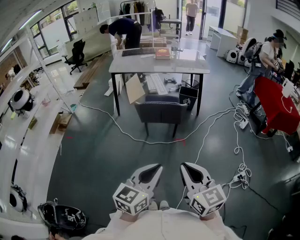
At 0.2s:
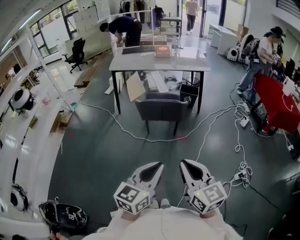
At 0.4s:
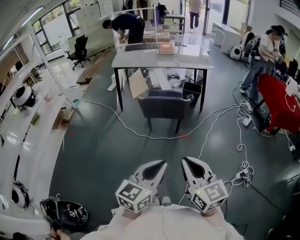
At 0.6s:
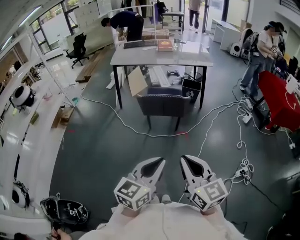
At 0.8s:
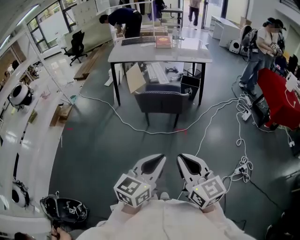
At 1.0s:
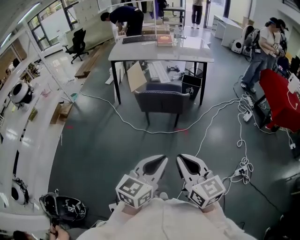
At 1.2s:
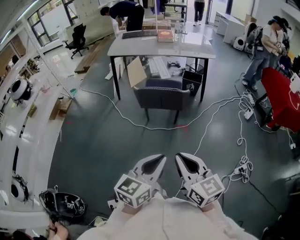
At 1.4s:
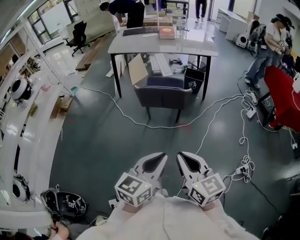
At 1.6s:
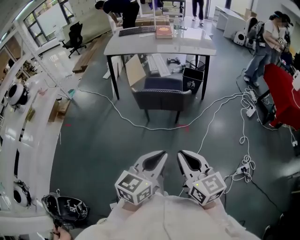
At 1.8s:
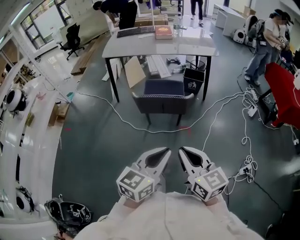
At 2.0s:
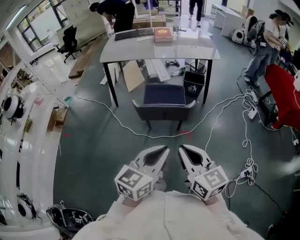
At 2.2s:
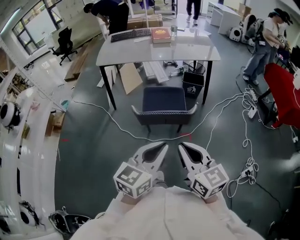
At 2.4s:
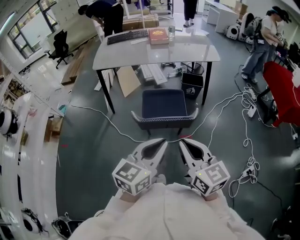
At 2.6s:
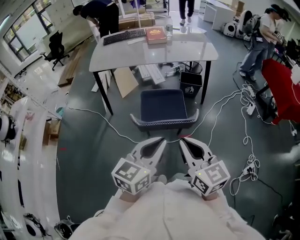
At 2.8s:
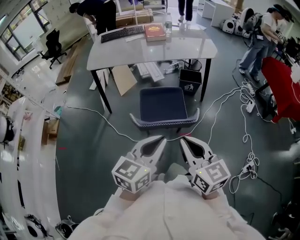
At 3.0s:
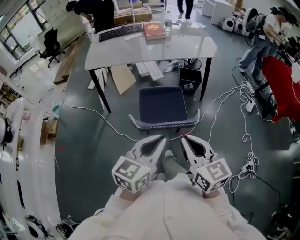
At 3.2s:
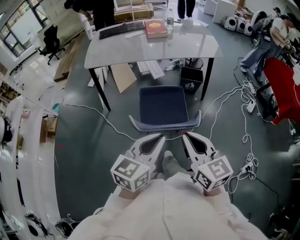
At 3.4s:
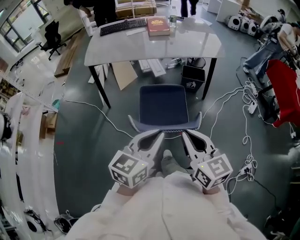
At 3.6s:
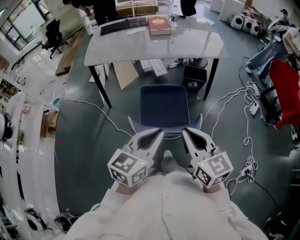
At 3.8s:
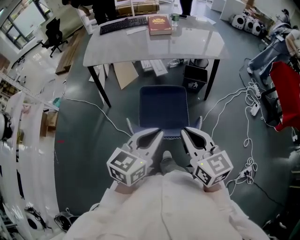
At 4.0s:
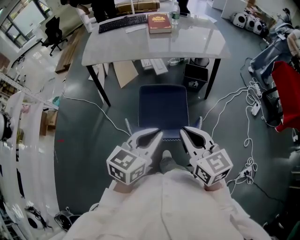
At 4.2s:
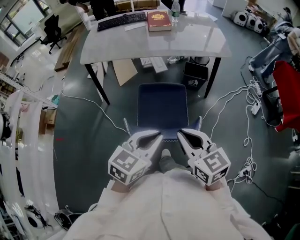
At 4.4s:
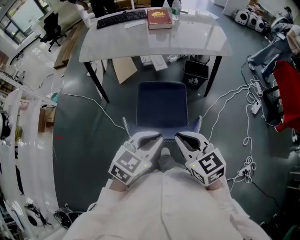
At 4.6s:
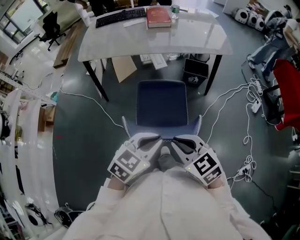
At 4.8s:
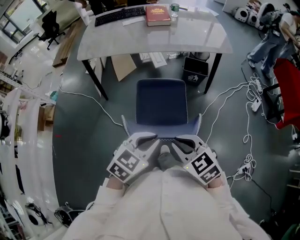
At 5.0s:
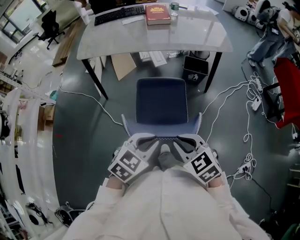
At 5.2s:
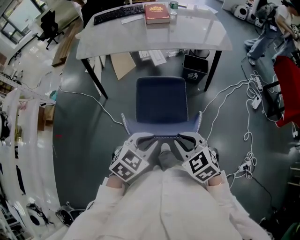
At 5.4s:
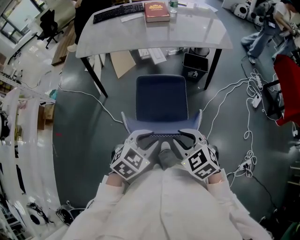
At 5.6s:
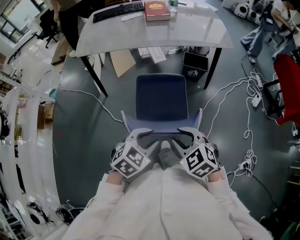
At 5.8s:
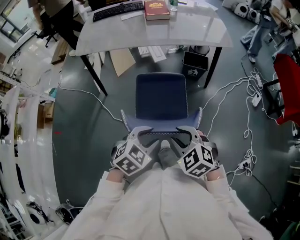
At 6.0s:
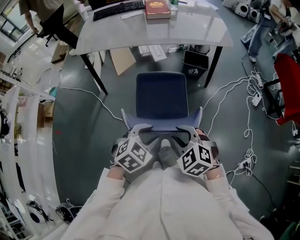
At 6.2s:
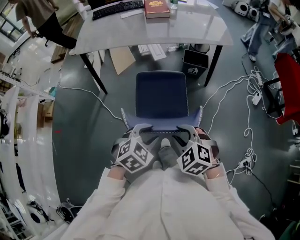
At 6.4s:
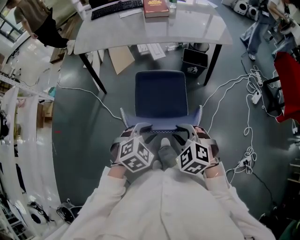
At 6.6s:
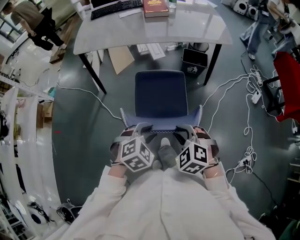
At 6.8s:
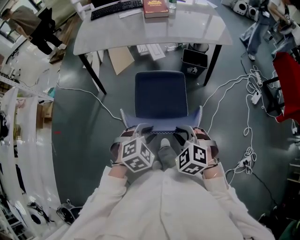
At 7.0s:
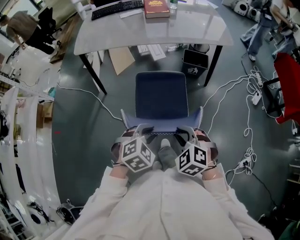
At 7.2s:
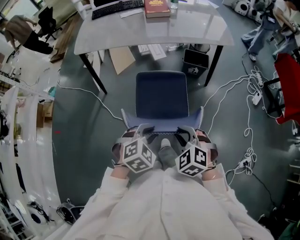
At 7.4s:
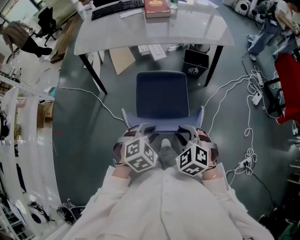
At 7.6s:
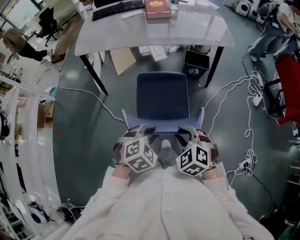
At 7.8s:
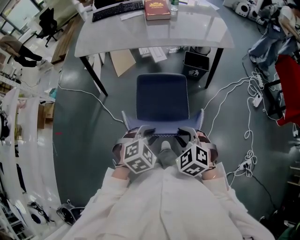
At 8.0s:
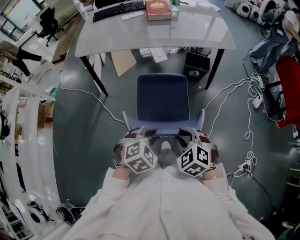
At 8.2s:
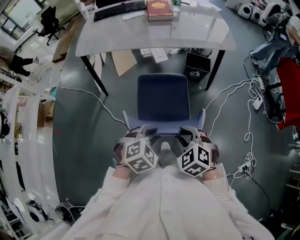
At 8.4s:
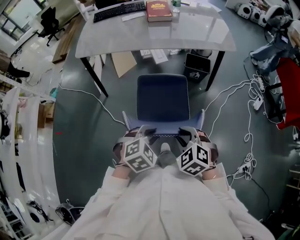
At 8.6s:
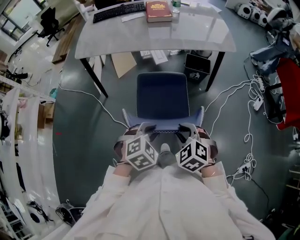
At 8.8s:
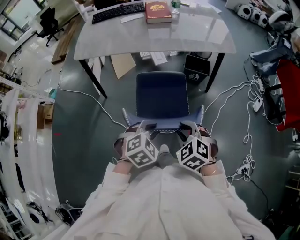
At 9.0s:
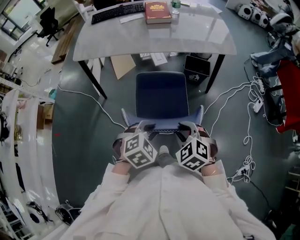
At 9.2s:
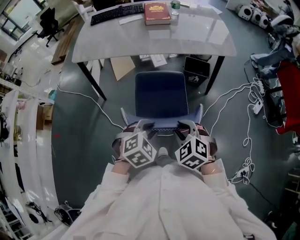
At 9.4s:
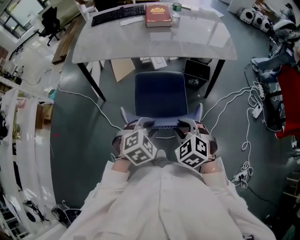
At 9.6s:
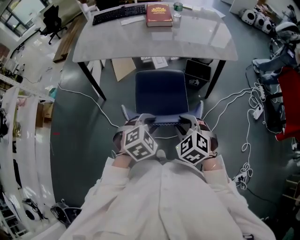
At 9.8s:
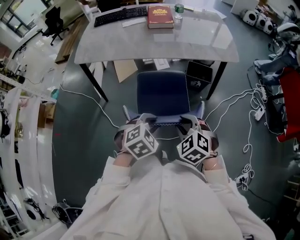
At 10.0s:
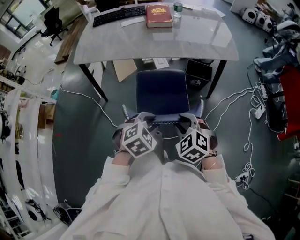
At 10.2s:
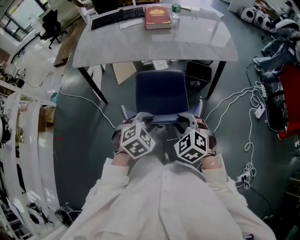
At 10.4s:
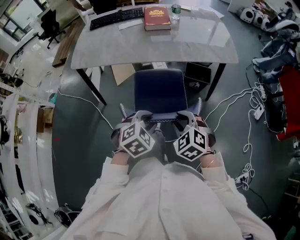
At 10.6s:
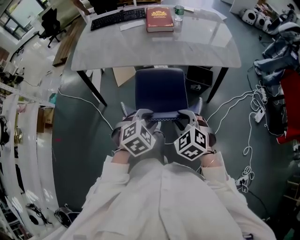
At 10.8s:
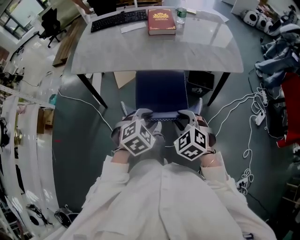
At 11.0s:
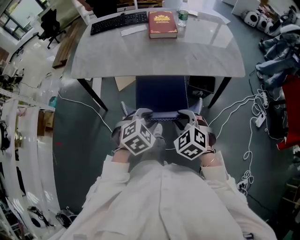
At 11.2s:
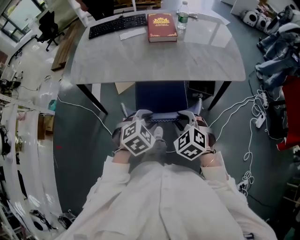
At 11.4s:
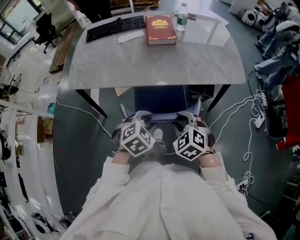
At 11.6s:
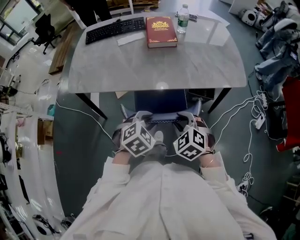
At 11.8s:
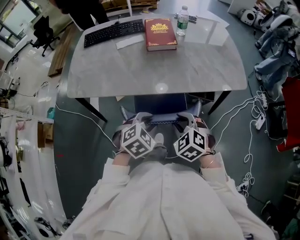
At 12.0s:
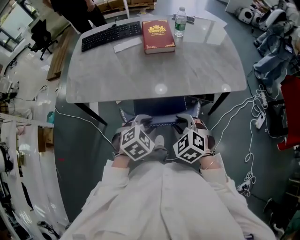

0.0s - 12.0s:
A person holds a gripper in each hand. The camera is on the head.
0.0s - 1.6s: The left gripper goes approximately 10 cm forward; the right gripper shifts roughly 15 cm forward and downward.
1.6s - 3.0s: Both grippers travel together forward, about 30 cm.
3.0s - 4.4s: The two grippers go about 15 cm forward and downward. The right gripper turns by some 20 degrees. Meanwhile the left gripper swivels some 20 degrees.
4.4s - 6.0s: The grippers both shift downward by roughly 10 cm. The left gripper swivels roughly 30 degrees, and opens, while the right gripper turns by approximately 40 degrees, and opens up.
6.0s - 7.6s: There are only small adjustments of the grippers.
7.6s - 9.0s: The grippers both shift forward by about 5 cm.
9.0s - 10.4s: The grippers both shift forward by approximately 10 cm.
10.4s - 12.0s: Both grippers travel together forward, about 20 cm.

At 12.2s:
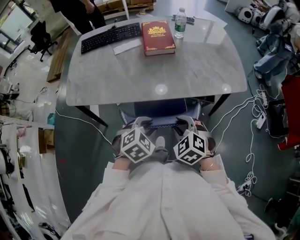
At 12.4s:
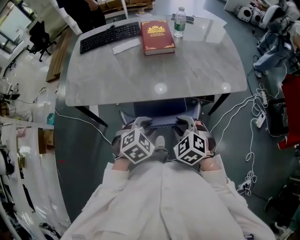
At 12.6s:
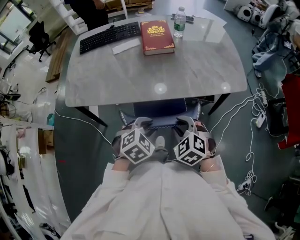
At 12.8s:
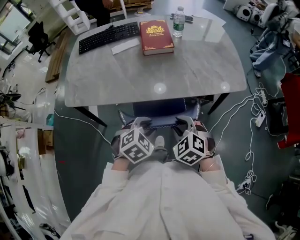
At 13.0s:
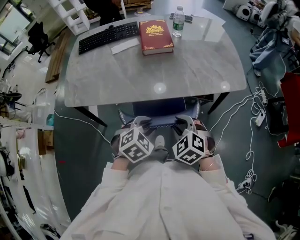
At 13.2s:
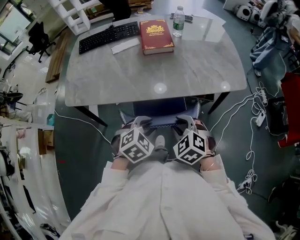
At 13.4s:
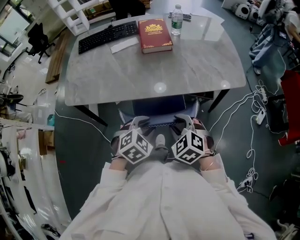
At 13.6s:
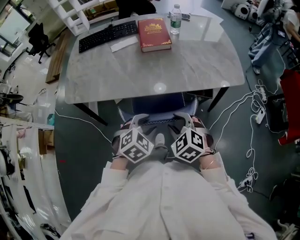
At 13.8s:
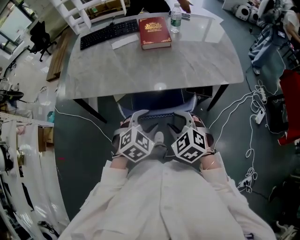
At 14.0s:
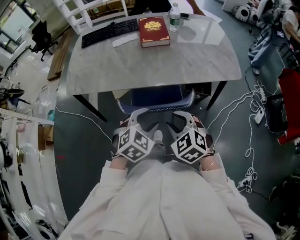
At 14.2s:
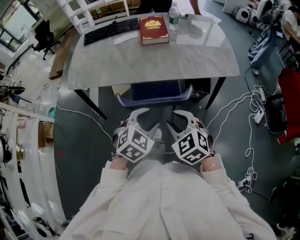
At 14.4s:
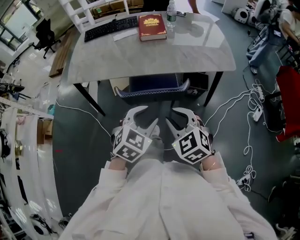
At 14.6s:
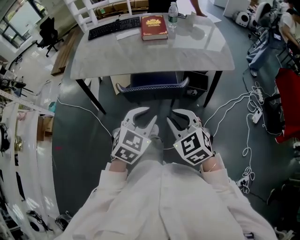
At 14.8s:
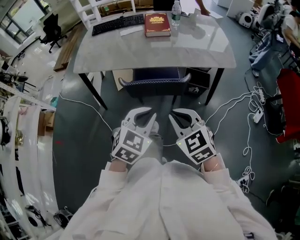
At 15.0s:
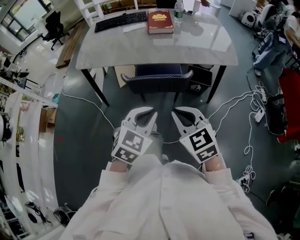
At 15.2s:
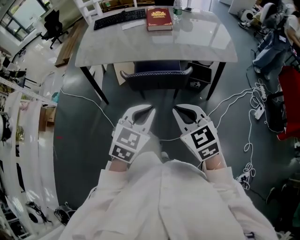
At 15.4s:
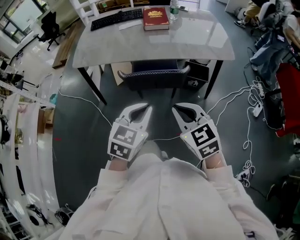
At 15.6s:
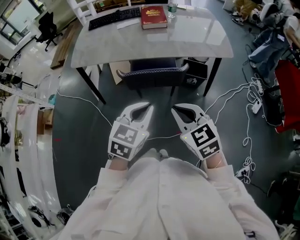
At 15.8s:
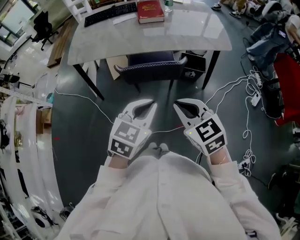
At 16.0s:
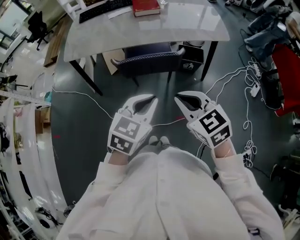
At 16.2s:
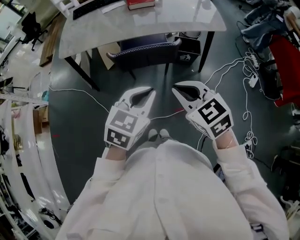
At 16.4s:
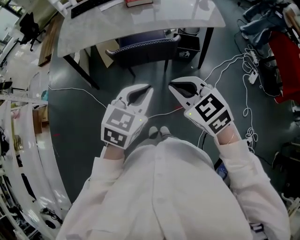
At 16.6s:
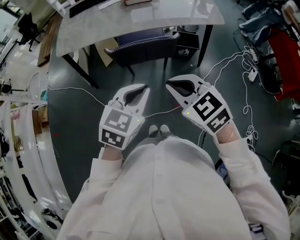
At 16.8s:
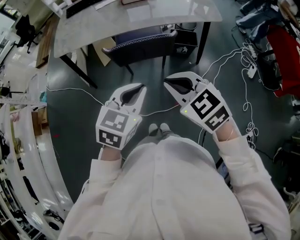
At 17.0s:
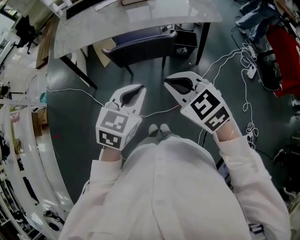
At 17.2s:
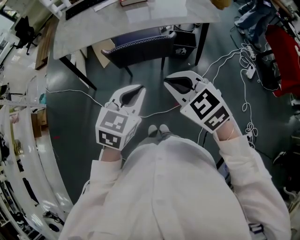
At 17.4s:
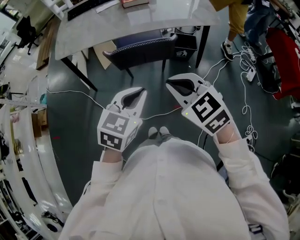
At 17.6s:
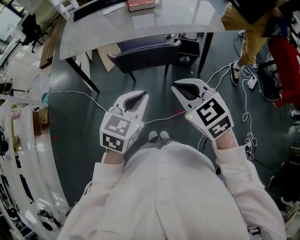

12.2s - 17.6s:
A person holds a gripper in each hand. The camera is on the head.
12.2s - 13.6s: The grippers move only a little.
13.6s - 15.0s: The grippers both shift backward and upward by about 20 cm. The right gripper swivels some 30 degrees, and closes up. The left gripper swivels approximately 30 degrees, and closes up.
15.0s - 17.6s: There are only small adjustments of the grippers.

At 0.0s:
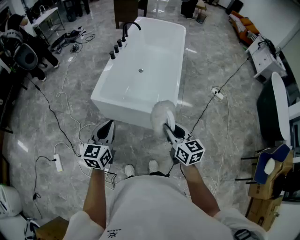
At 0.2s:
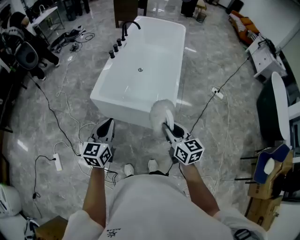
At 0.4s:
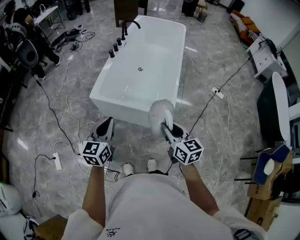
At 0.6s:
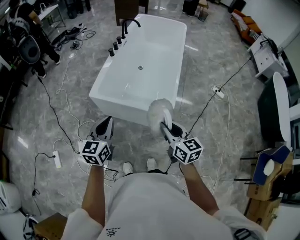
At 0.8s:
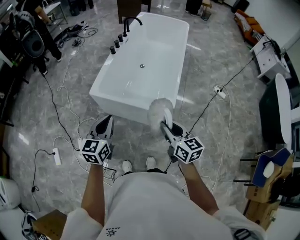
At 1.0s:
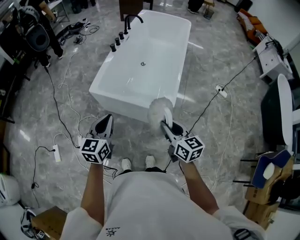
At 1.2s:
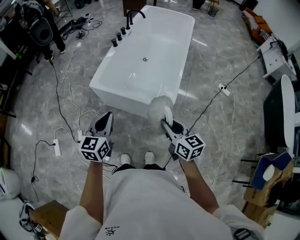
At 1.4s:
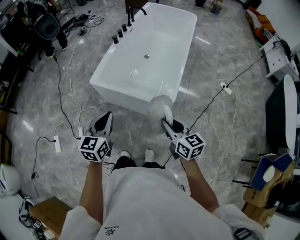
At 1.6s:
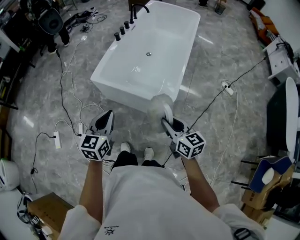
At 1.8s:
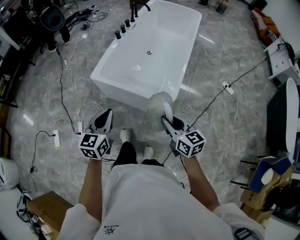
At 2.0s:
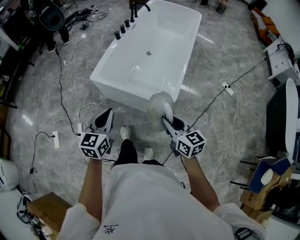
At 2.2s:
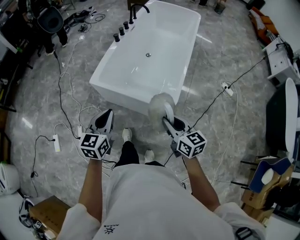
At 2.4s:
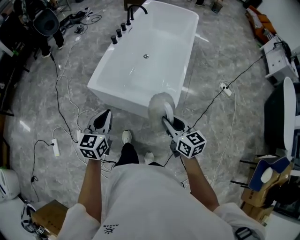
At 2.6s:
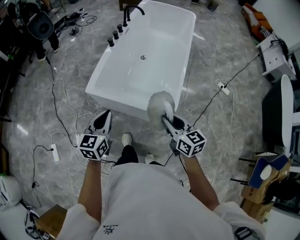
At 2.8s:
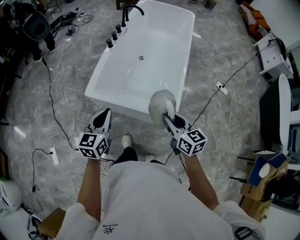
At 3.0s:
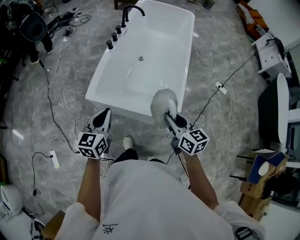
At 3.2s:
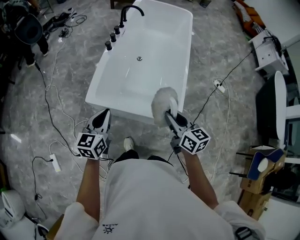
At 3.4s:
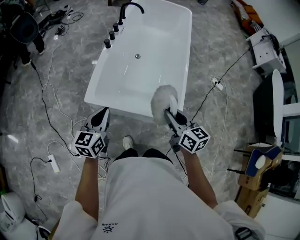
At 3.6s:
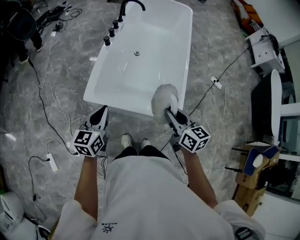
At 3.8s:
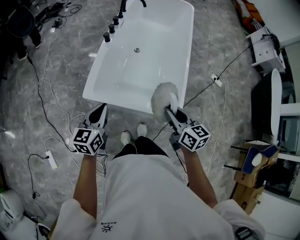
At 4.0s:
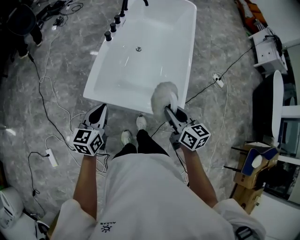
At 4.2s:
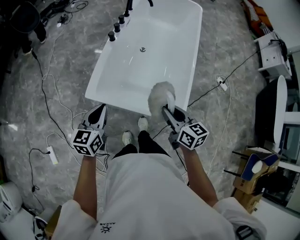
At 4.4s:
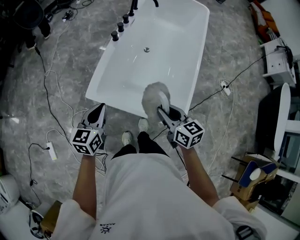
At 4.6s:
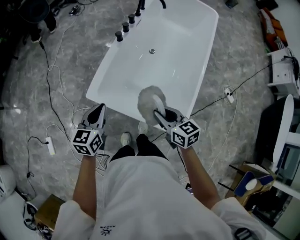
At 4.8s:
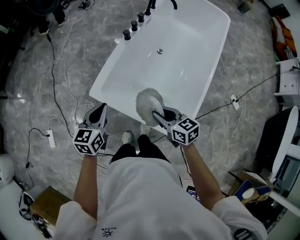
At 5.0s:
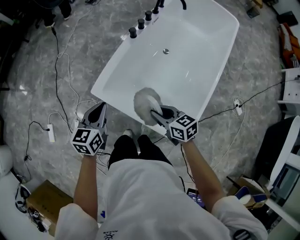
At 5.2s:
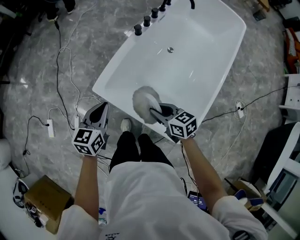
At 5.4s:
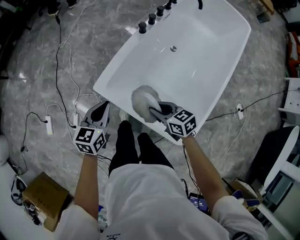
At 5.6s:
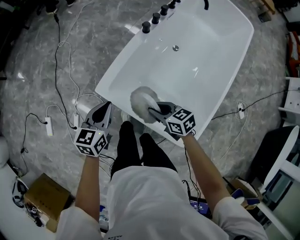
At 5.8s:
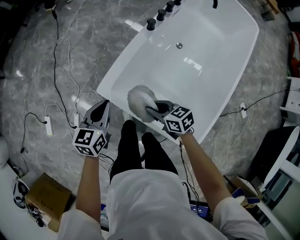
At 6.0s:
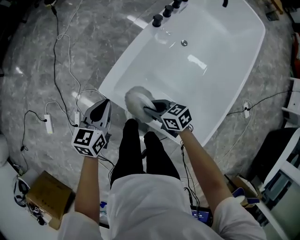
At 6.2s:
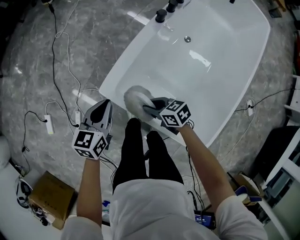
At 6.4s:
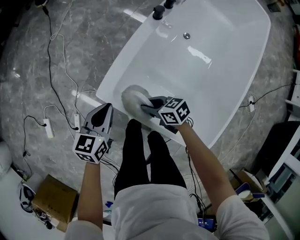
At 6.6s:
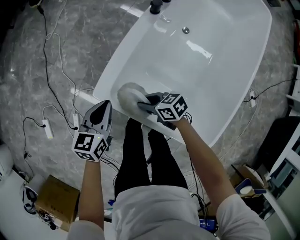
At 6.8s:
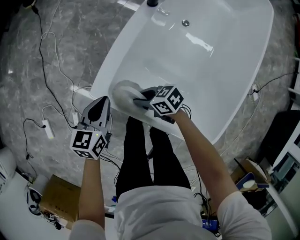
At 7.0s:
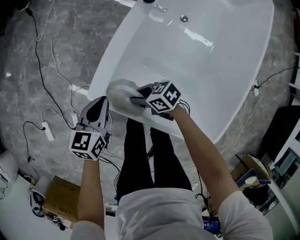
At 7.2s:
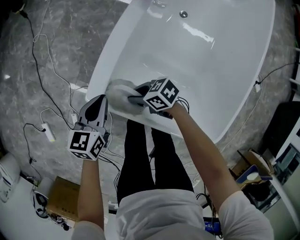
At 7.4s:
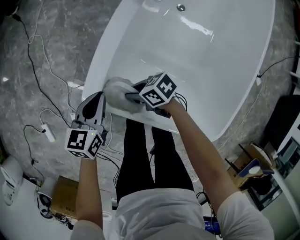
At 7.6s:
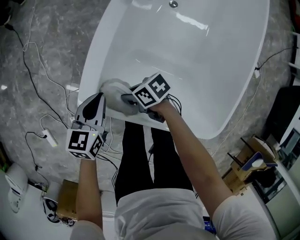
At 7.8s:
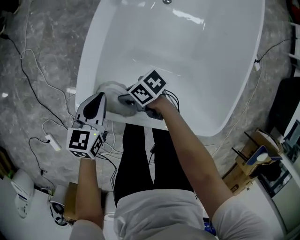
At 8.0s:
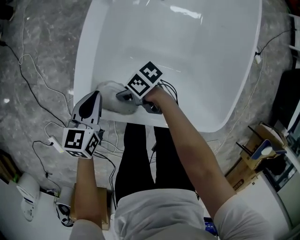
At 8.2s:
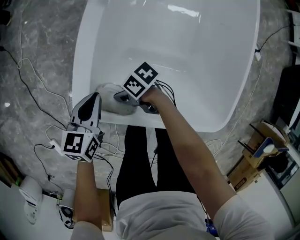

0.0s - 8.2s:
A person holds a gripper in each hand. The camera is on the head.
0.0s - 1.6s: Both grippers travel together to the right, approximately 5 cm.
1.6s - 3.2s: The right gripper is displaced forward by some 20 cm, while the left gripper is displaced forward and to the left by about 25 cm.
3.2s - 5.0s: The left gripper moves approximately 15 cm, and turns by approximately 20 degrees. Meanwhile the right gripper ends up approximately 20 cm from where it was, and swivels some 40 degrees.
5.0s - 6.6s: The right gripper goes about 30 cm downward, forward and to the left, and changes its angle by roughly 30 degrees; the left gripper shifts roughly 20 cm downward and forward.
6.6s - 8.2s: The two grippers go some 10 cm downward. The right gripper swivels about 30 degrees.
